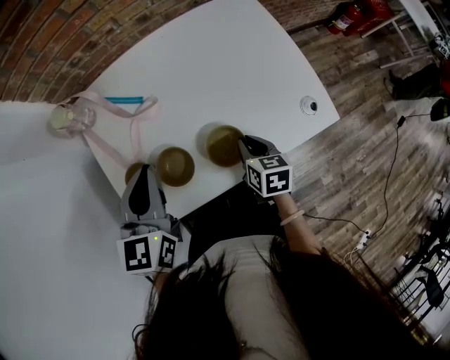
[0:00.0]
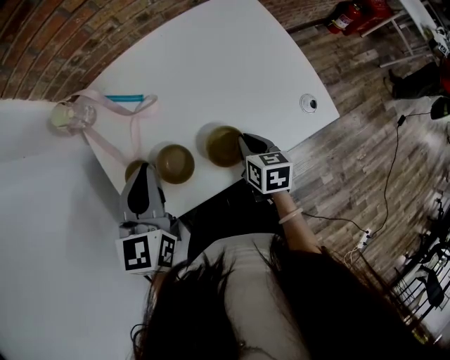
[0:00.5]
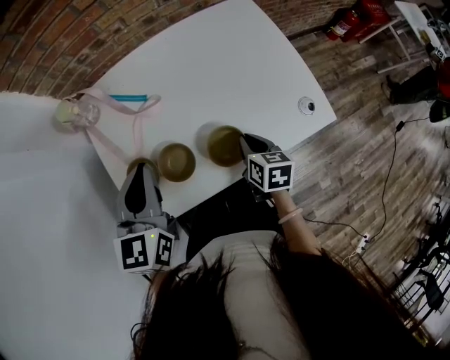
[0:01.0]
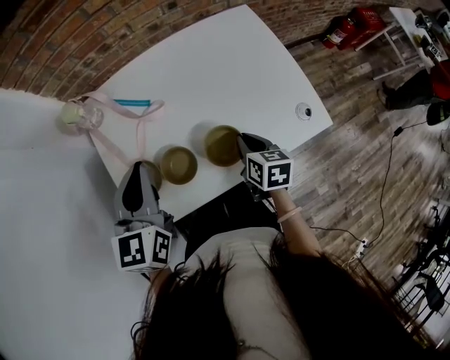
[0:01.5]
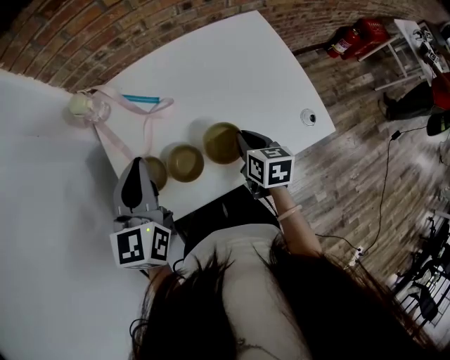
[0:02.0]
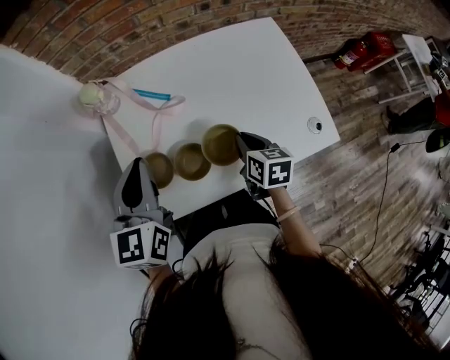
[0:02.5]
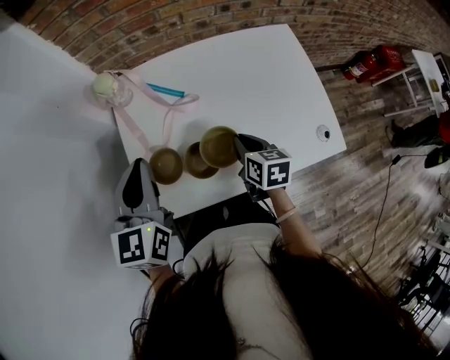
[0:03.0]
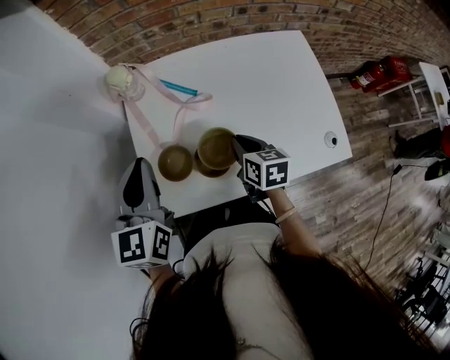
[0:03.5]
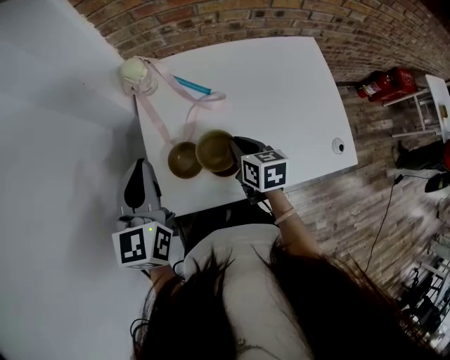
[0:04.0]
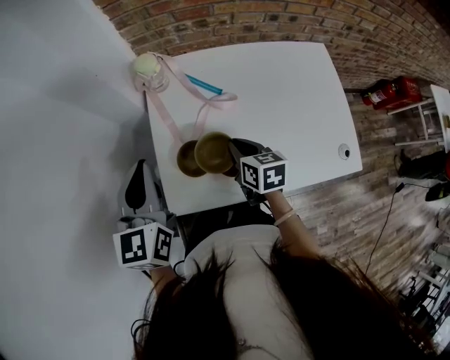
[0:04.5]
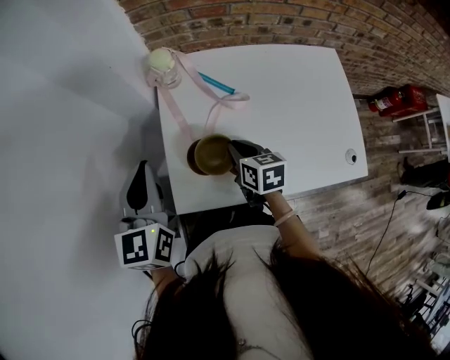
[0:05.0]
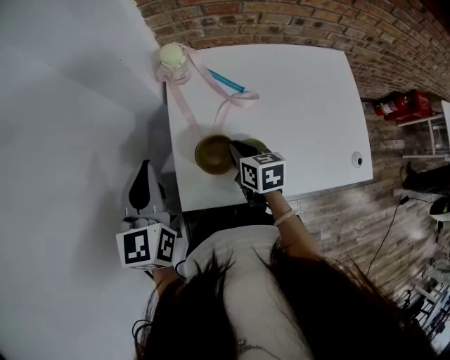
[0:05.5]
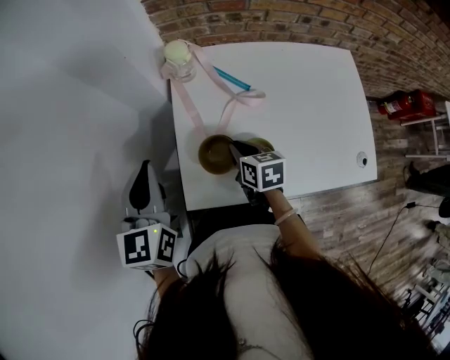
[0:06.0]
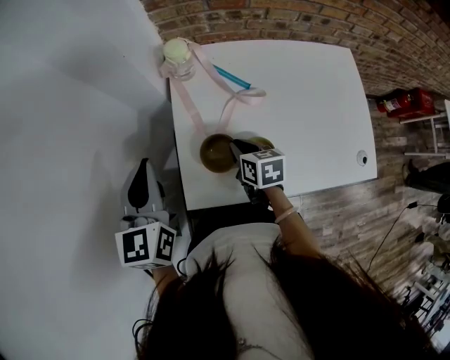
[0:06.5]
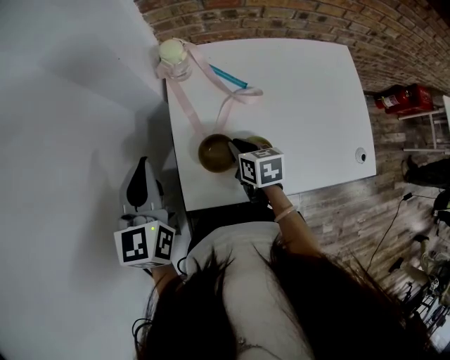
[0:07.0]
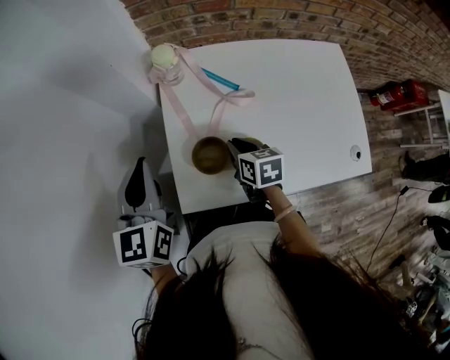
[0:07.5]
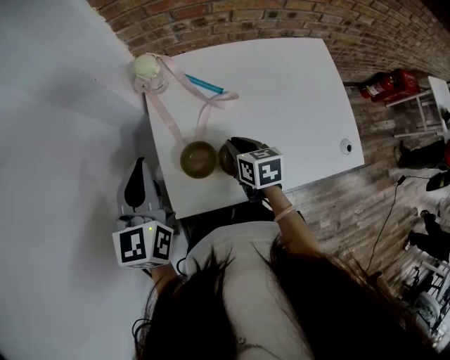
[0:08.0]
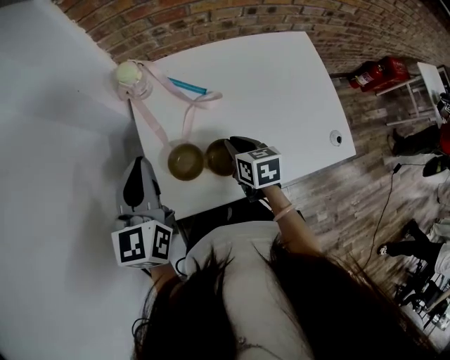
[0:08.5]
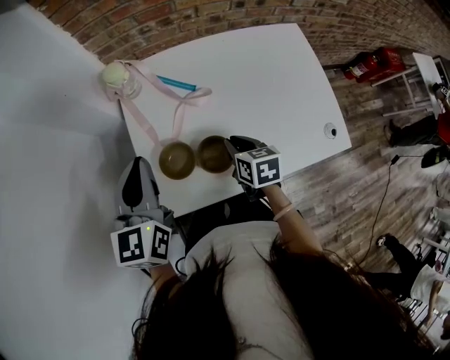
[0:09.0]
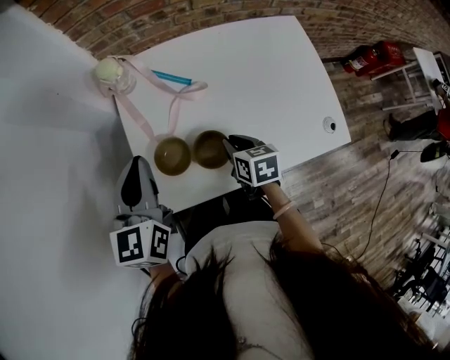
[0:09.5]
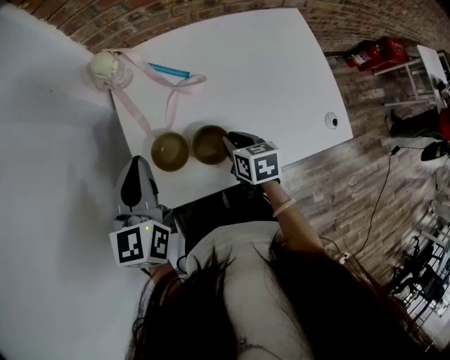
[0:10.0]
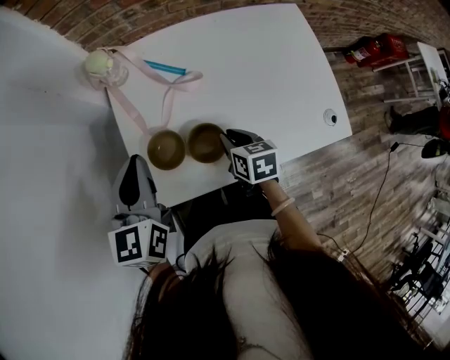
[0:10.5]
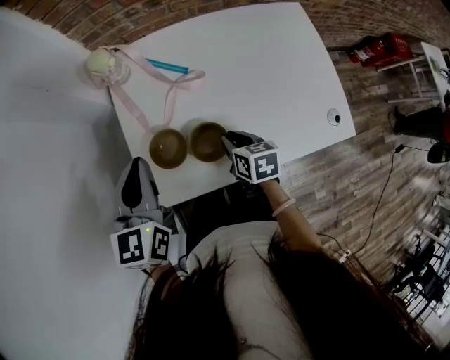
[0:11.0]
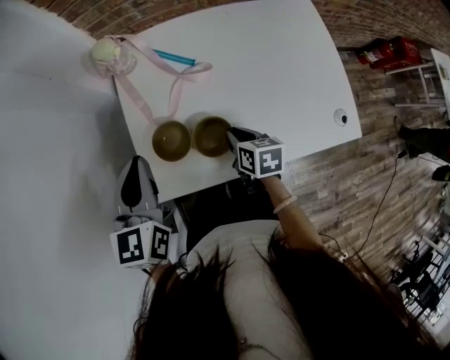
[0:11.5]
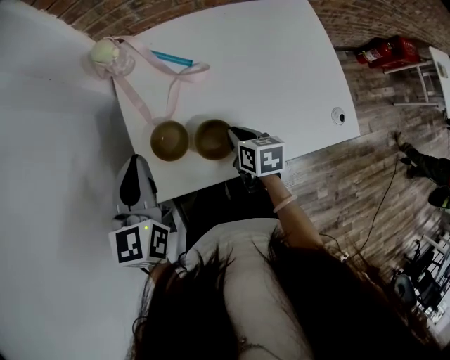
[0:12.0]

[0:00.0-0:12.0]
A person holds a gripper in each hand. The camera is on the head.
0:00.0 to 0:02.0: The right gripper moves upward, roughly 5 cm. Meanwhile the left gripper goes about 5 cm to the left.
0:02.0 to 0:04.0: The grippers both shift to the left by about 15 cm.
0:04.0 to 0:06.0: The grippers both shift to the left by some 10 cm.
0:06.0 to 0:08.0: The two grippers go approximately 5 cm to the right.
0:08.0 to 0:10.0: The two grippers go roughly 5 cm to the right.
0:10.0 to 0:12.0: There are only small adjustments of the grippers.

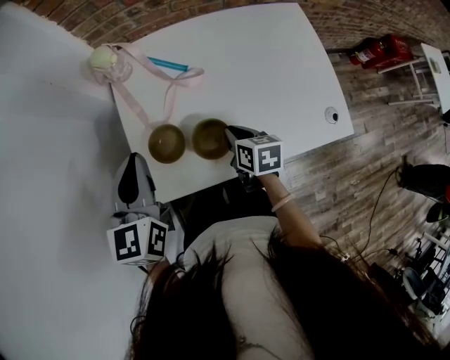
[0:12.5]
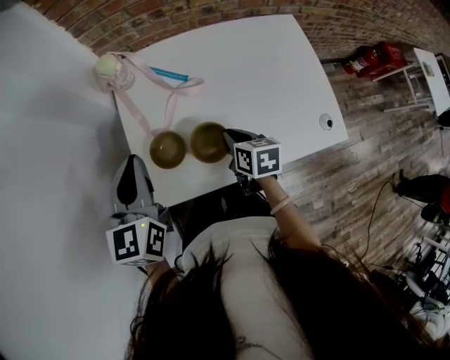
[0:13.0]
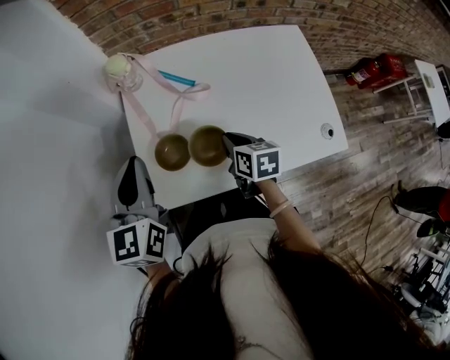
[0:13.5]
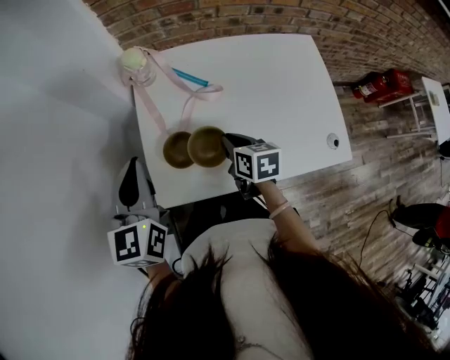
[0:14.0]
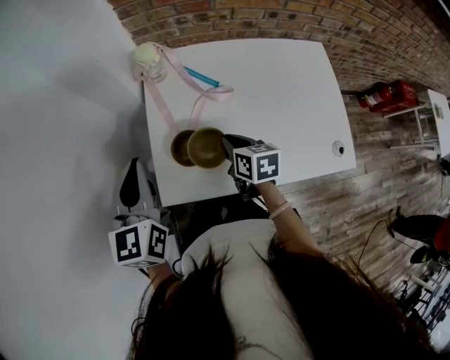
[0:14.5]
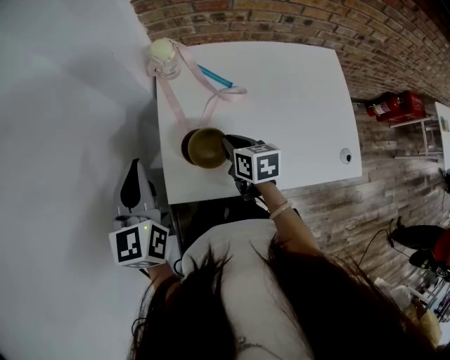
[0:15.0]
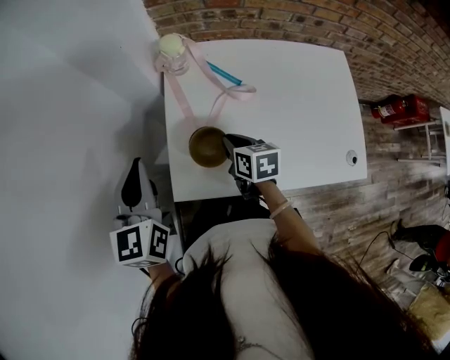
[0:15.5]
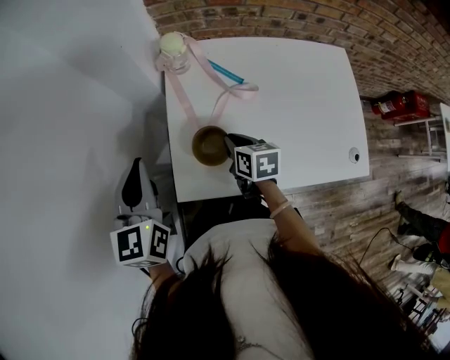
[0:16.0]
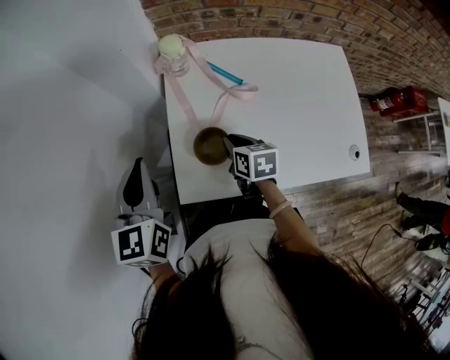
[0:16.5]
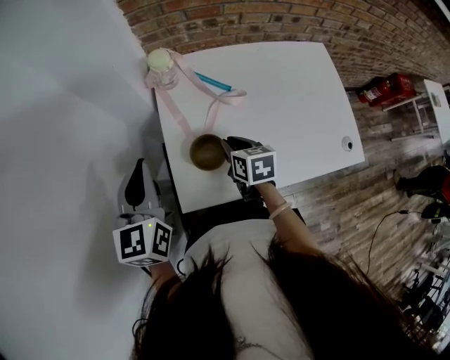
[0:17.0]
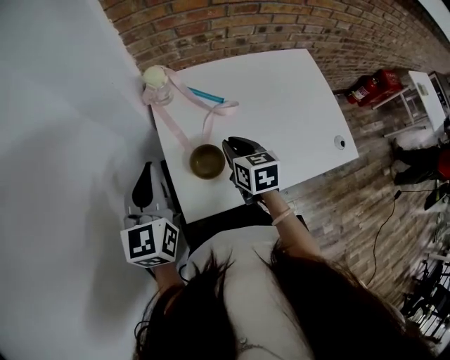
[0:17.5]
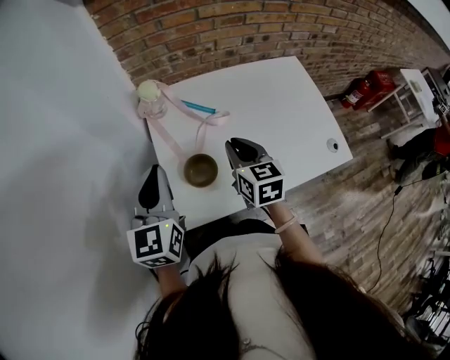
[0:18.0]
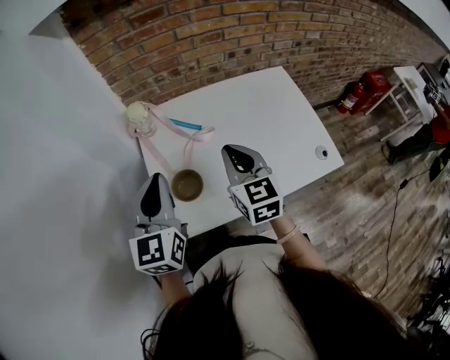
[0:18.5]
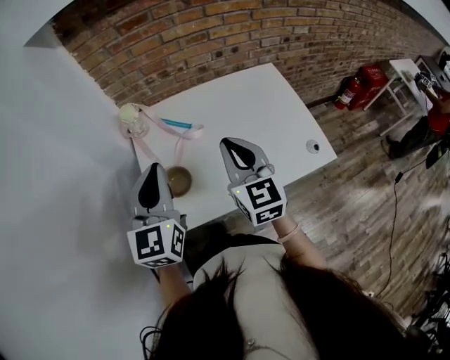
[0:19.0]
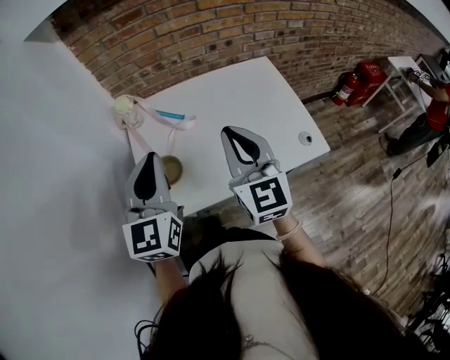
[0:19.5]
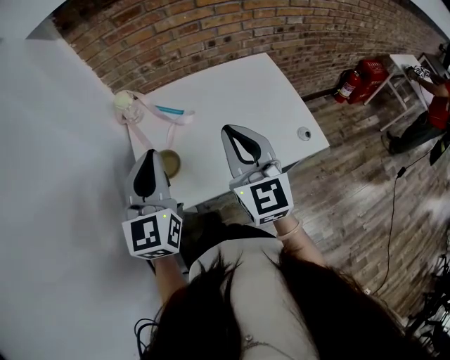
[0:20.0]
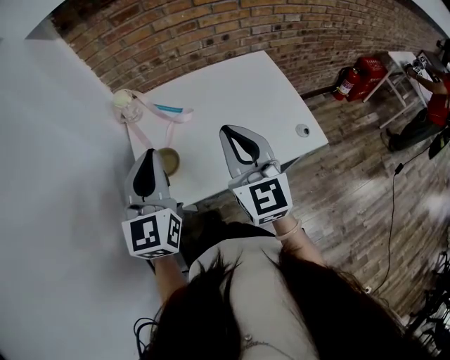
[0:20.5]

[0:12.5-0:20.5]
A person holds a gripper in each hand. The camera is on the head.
0:12.5 to 0:14.5: Both grippers move to the left, approximately 5 cm.
0:14.5 to 0:16.5: Both grippers travel together to the left, approximately 5 cm.
0:16.5 to 0:18.5: The left gripper shifts roughly 15 cm to the right and upward. The right gripper shifts some 20 cm upward and to the right, and swivels roughly 40 degrees.
0:18.5 to 0:20.5: The right gripper is displaced backward, upward and to the right by roughly 15 cm, and swivels about 20 degrees. The left gripper travels to the right and backward by approximately 10 cm.

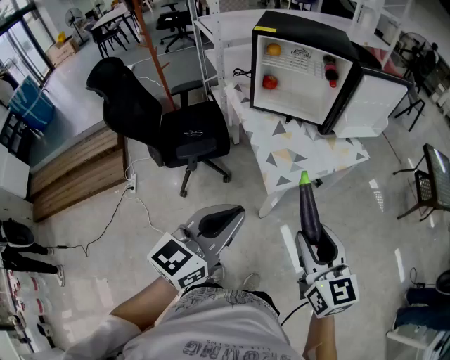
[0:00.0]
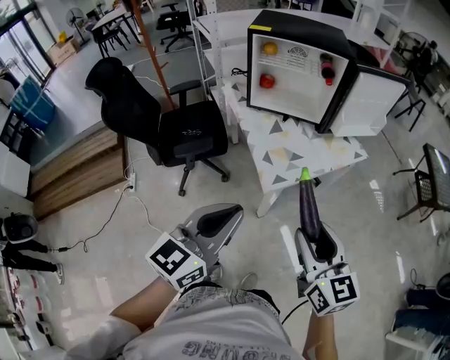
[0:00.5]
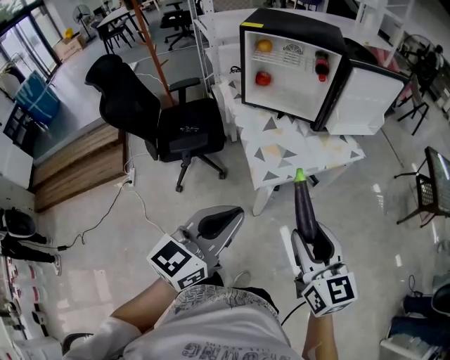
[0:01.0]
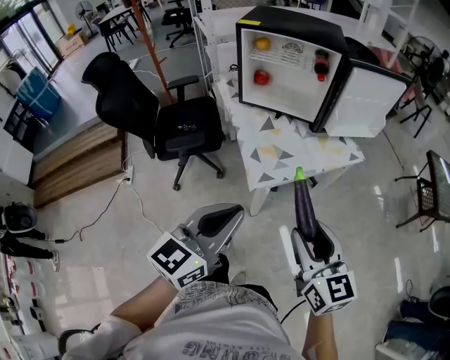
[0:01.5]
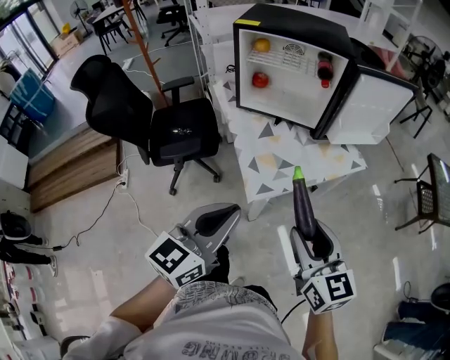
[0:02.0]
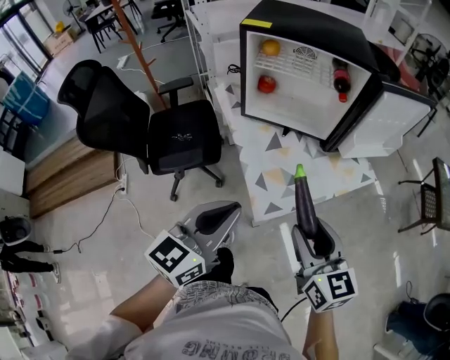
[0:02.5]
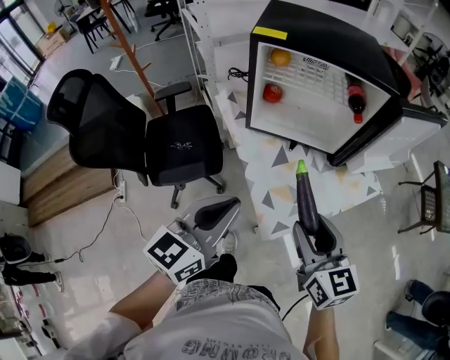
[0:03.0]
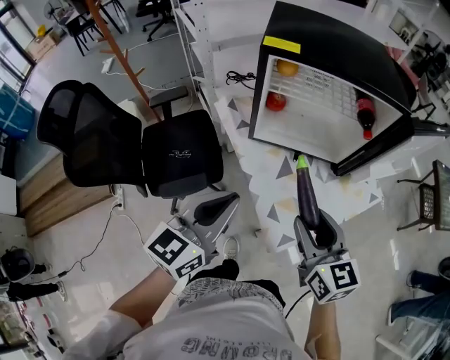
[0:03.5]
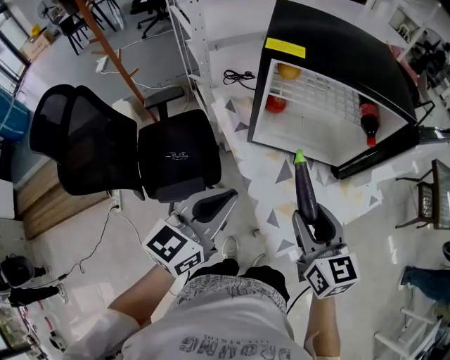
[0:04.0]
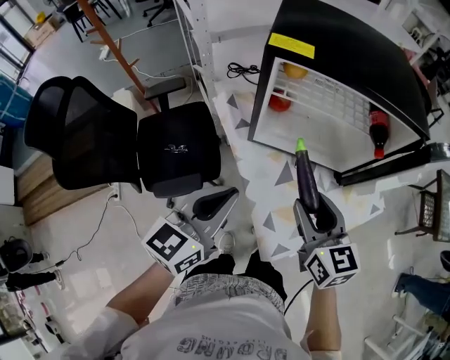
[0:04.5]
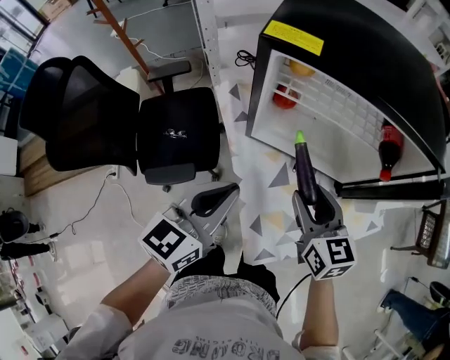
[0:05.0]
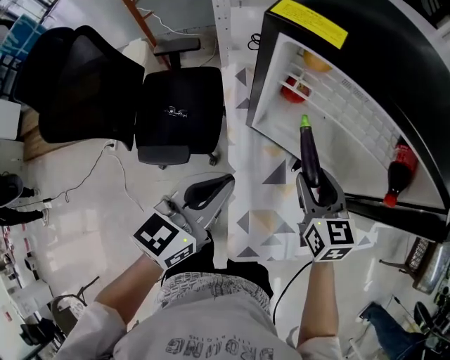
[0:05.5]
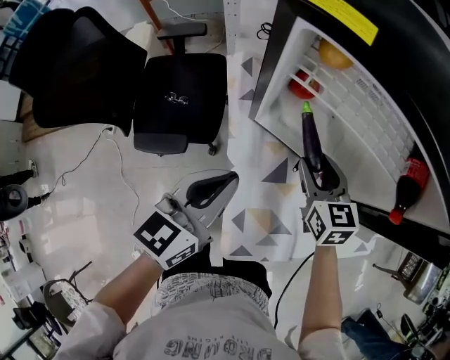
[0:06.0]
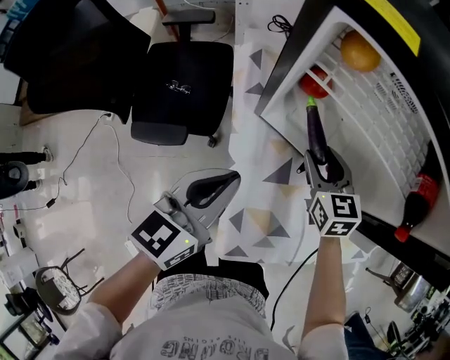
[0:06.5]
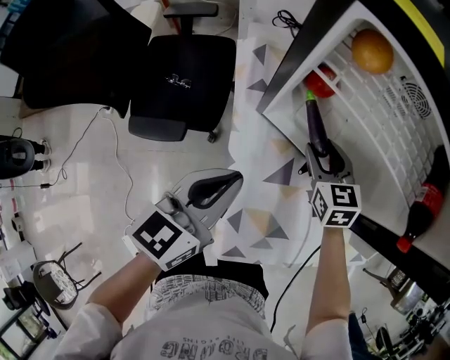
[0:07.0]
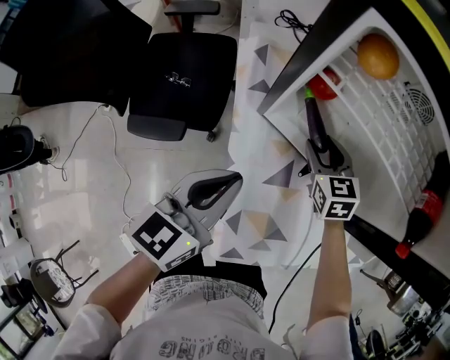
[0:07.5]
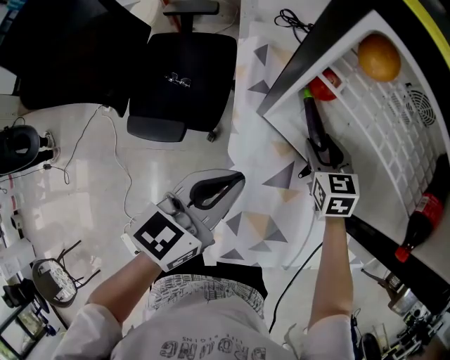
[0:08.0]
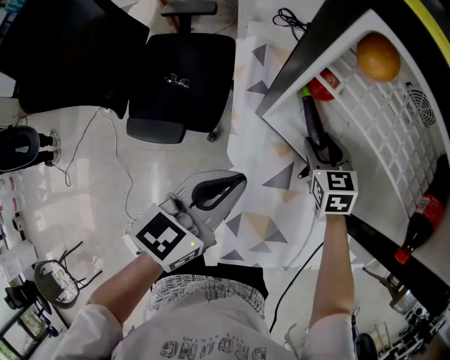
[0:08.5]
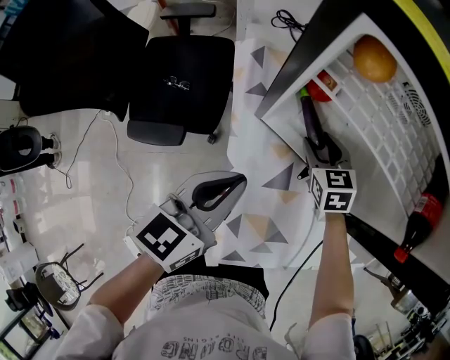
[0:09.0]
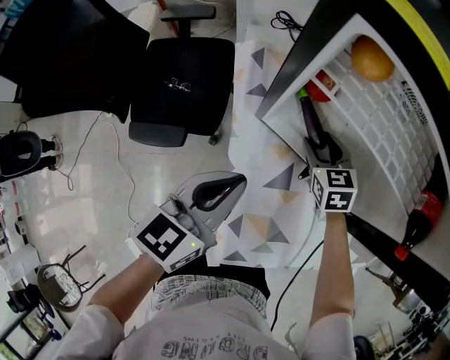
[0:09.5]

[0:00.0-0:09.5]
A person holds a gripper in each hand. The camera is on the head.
0:00.0 to 0:02.0: The two grippers go about 10 cm forward and to the right.
0:02.0 to 0:04.0: Both grippers travel together forward and to the left, roughly 30 cm.
0:04.0 to 0:05.5: The left gripper is displaced forward, downward and to the right by some 10 cm; the right gripper travels forward and downward by approximately 20 cm.
0:05.5 to 0:07.5: The left gripper heads downward, covering approximately 5 cm; the right gripper shifts roughly 15 cm downward and forward.
0:07.5 to 0:09.5: The grippers move only a little.
